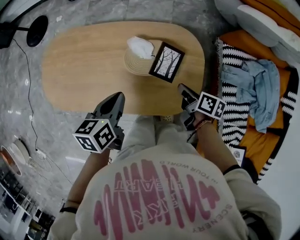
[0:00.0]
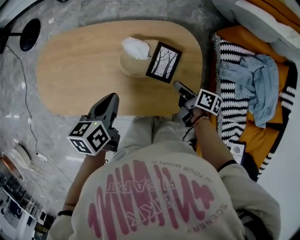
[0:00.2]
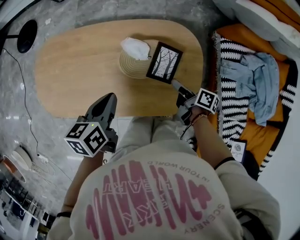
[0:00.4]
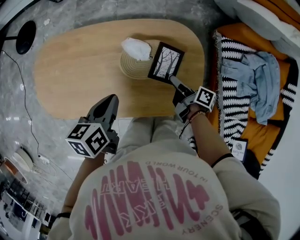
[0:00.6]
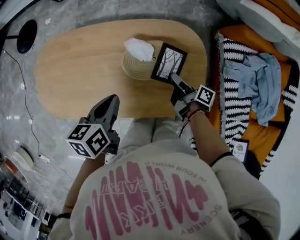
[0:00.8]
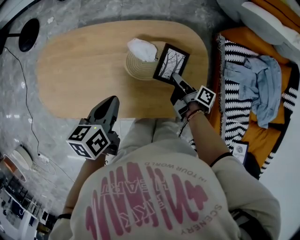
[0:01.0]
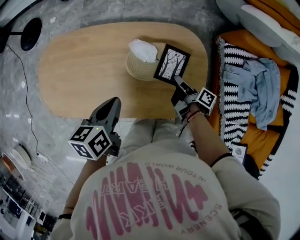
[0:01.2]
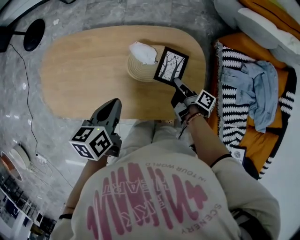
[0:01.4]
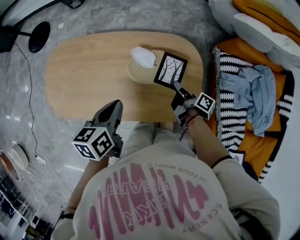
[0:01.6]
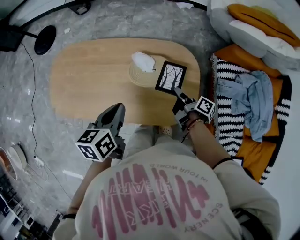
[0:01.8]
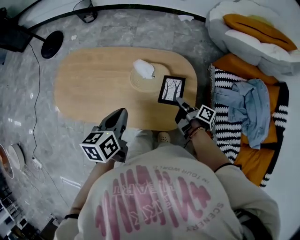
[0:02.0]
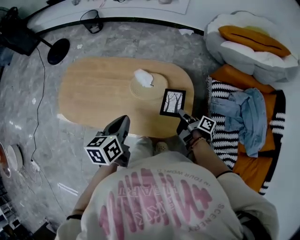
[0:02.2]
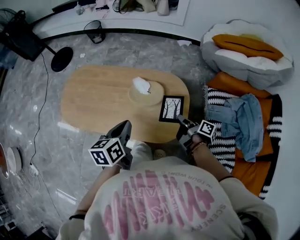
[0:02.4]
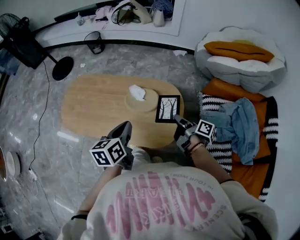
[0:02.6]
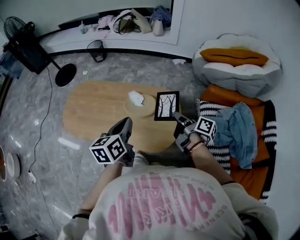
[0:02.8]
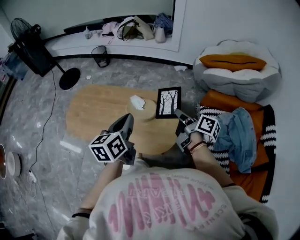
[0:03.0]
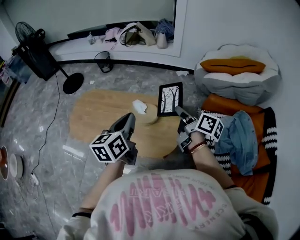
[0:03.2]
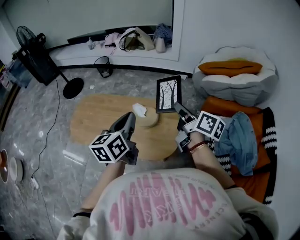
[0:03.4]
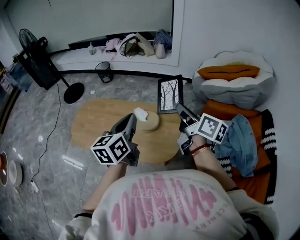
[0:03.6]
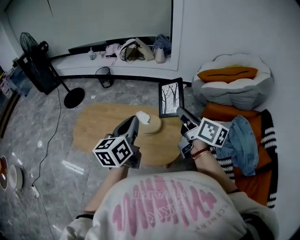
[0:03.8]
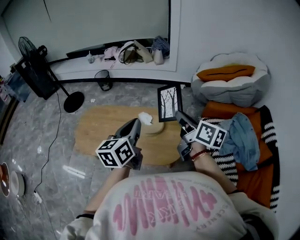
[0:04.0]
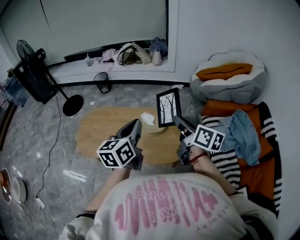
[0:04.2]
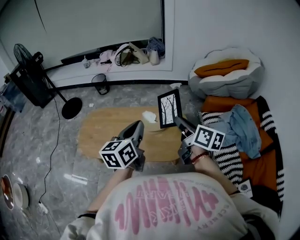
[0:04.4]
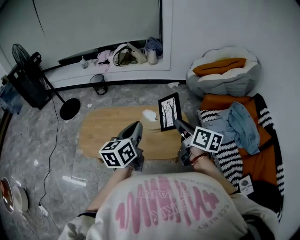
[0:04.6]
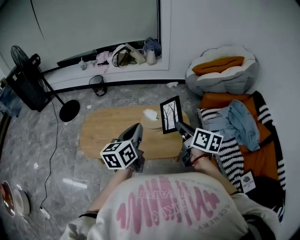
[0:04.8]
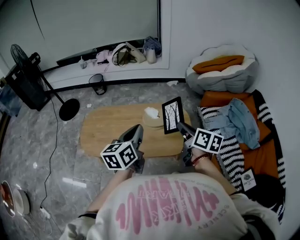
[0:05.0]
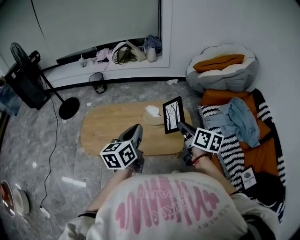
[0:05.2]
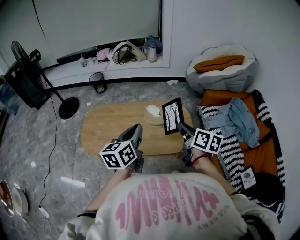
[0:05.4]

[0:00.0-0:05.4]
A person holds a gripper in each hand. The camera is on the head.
0:00.0 to 0:01.4: The right gripper shifts by approximately 5 cm, rotates some 30 degrees, and opens, then closes once more.
0:01.4 to 0:02.8: The left gripper moves upward, to the right and backward, roughly 20 cm, and changes its angle by about 20 degrees. Meanwhile the right gripper moves upward, about 25 cm, and turns by some 20 degrees.
0:02.8 to 0:04.0: The left gripper goes approximately 15 cm upward. The right gripper goes roughly 20 cm upward, and rotates approximately 40 degrees.
0:04.0 to 0:05.4: The left gripper goes about 15 cm to the left and backward. The right gripper travels backward, to the left and downward by approximately 15 cm.

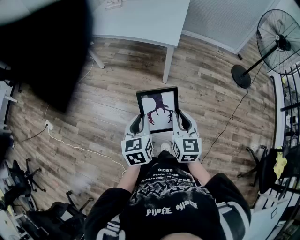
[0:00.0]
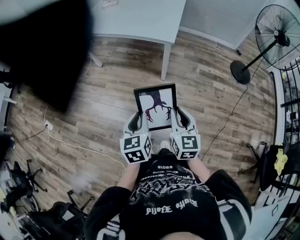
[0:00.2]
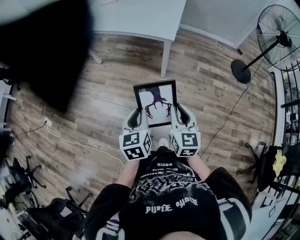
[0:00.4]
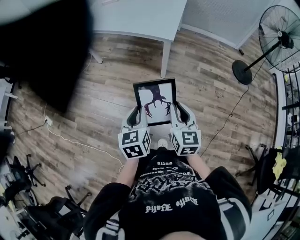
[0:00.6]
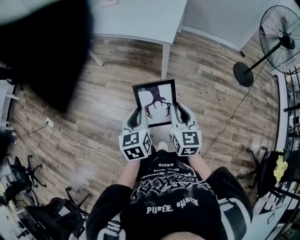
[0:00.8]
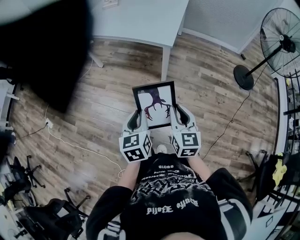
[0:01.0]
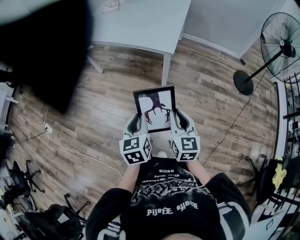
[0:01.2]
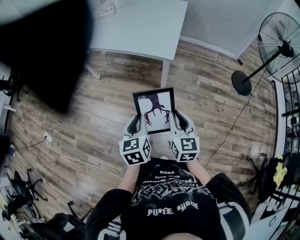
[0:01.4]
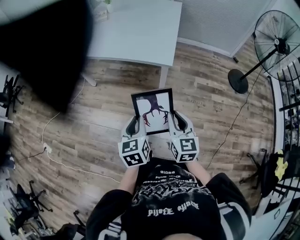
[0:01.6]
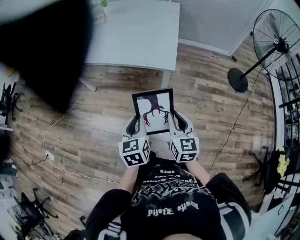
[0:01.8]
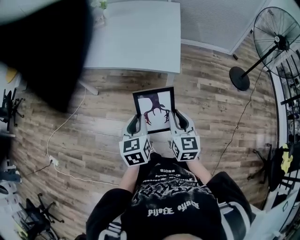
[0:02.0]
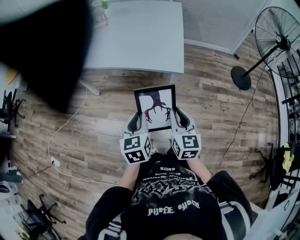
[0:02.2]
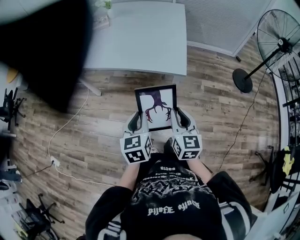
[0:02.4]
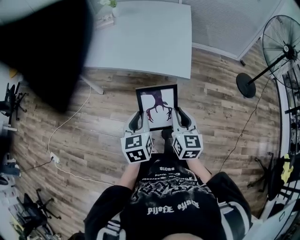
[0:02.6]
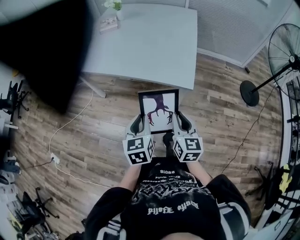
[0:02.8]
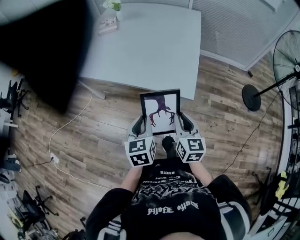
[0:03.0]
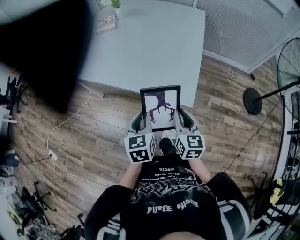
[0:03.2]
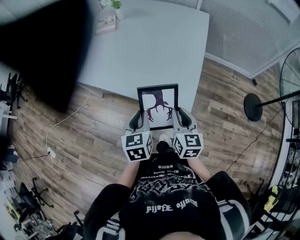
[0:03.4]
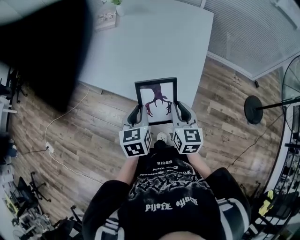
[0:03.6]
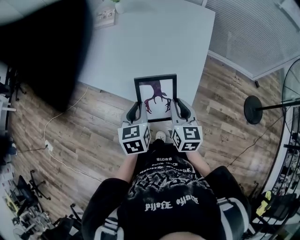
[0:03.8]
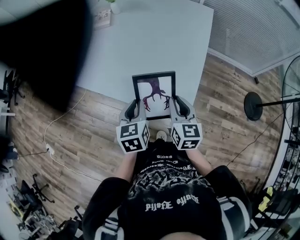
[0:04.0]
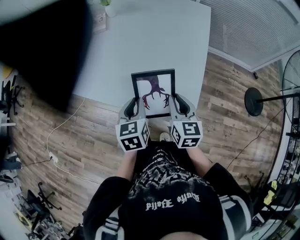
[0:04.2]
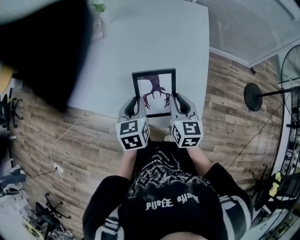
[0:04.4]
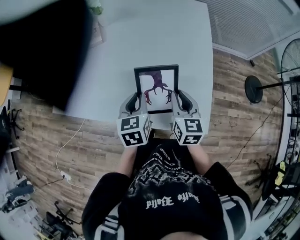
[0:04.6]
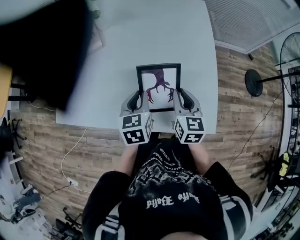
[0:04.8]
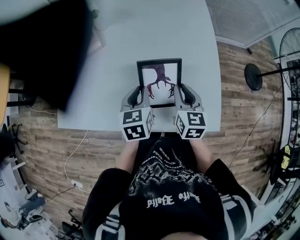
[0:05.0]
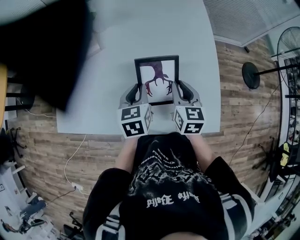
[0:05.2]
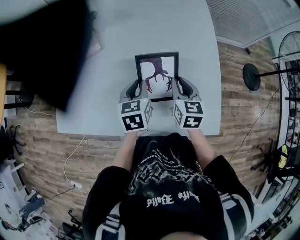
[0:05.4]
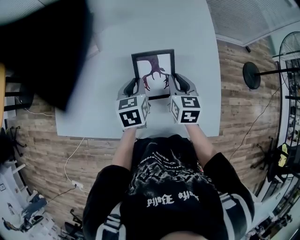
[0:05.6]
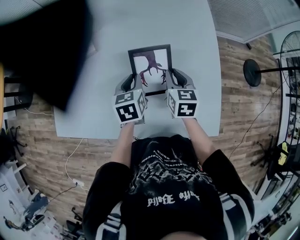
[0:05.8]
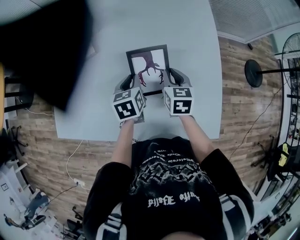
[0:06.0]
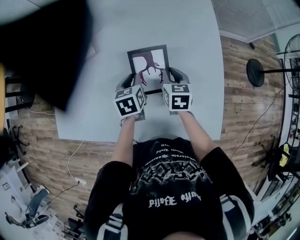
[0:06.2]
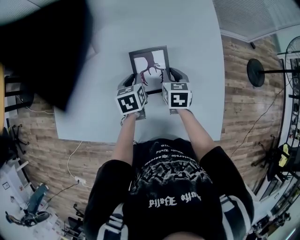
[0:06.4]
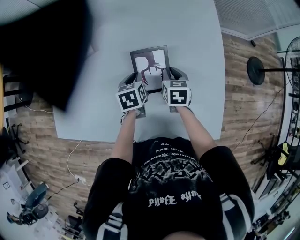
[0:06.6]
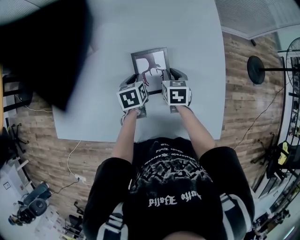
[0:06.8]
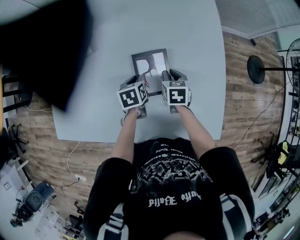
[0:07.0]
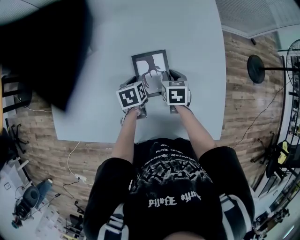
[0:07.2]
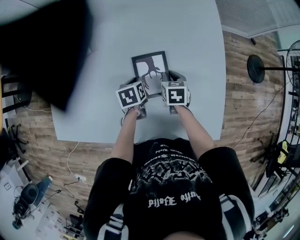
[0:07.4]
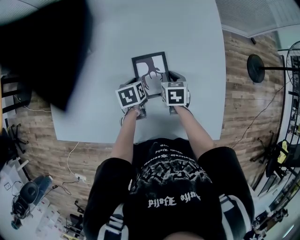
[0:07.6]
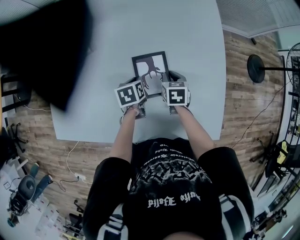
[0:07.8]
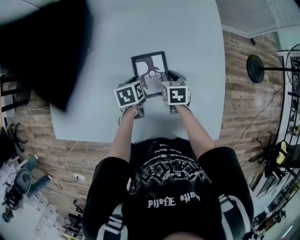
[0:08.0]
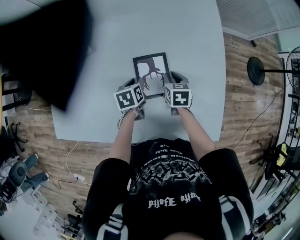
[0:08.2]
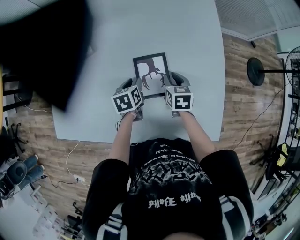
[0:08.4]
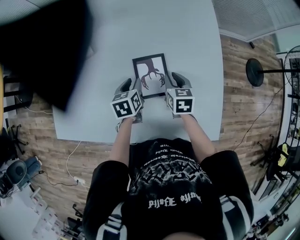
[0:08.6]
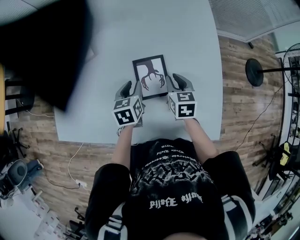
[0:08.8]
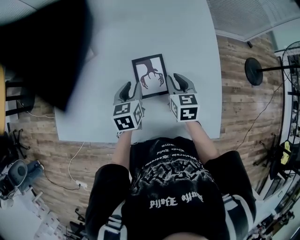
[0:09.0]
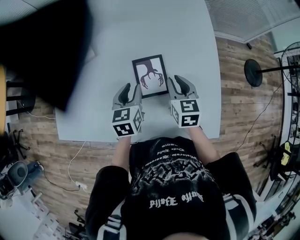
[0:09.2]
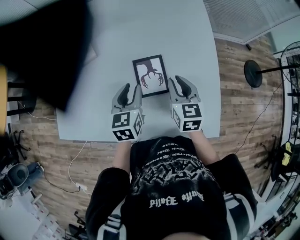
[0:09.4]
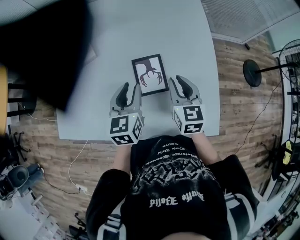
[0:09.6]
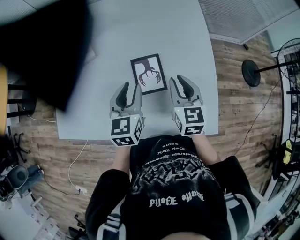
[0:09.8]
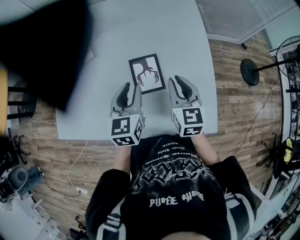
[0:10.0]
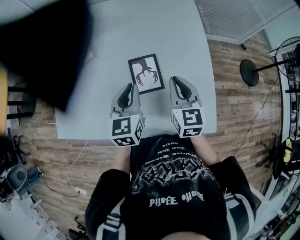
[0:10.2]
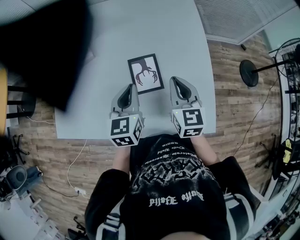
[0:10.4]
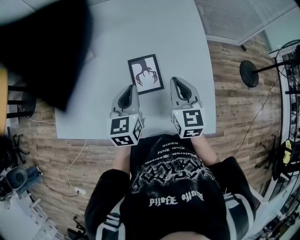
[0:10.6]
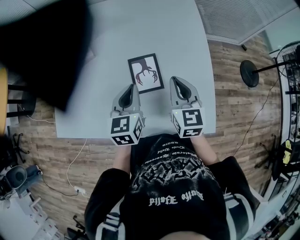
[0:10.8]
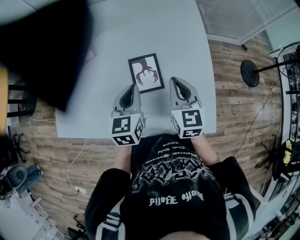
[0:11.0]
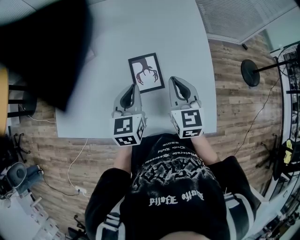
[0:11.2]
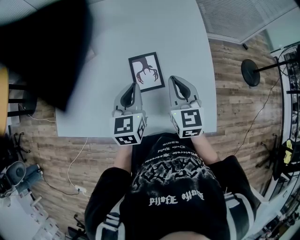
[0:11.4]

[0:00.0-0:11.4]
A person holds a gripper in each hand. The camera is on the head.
0:00.0 to 0:01.4: Both grippers move forward, roughly 15 cm.
0:01.4 to 0:02.8: Both grippers move forward and to the left, some 25 cm.
0:02.8 to 0:04.2: Both grippers move forward, roughly 30 cm.
0:04.2 to 0:05.6: Both grippers move forward and to the left, roughly 25 cm.
0:05.6 to 0:07.2: Both grippers travel together downward, some 15 cm. The right gripper swivels about 20 degrees.
0:07.2 to 0:08.6: The grippers move only a little.
0:08.6 to 0:10.0: Both grippers travel together upward and backward, roughly 20 cm. The right gripper changes its angle by approximately 20 degrees; the left gripper turns by roughly 30 degrees.
0:10.0 to 0:11.4: The left gripper closes.

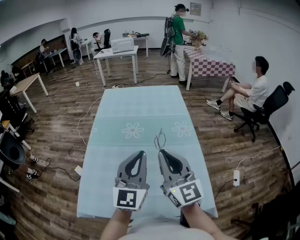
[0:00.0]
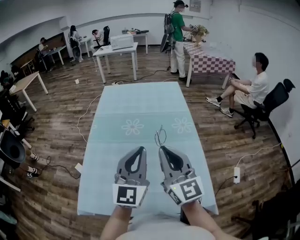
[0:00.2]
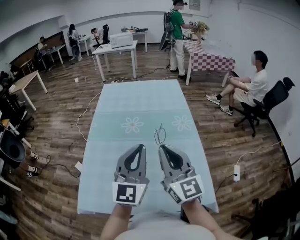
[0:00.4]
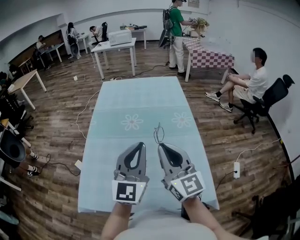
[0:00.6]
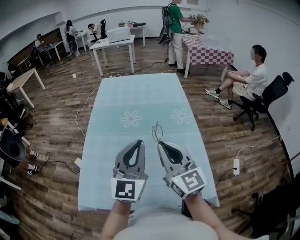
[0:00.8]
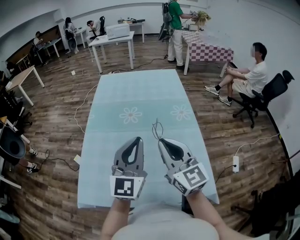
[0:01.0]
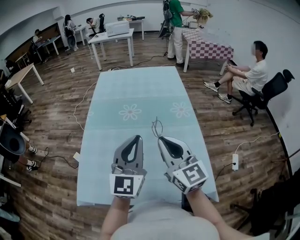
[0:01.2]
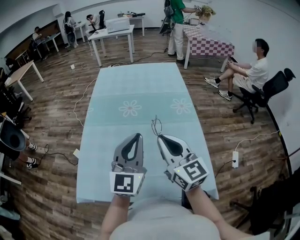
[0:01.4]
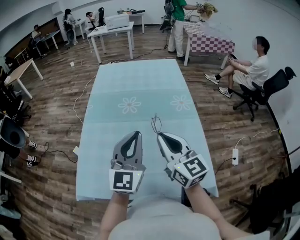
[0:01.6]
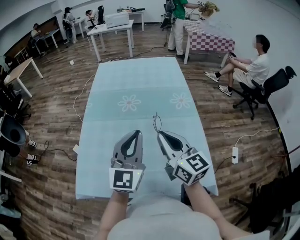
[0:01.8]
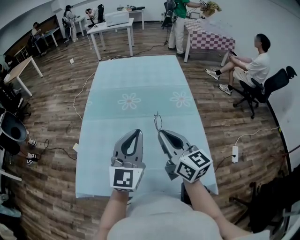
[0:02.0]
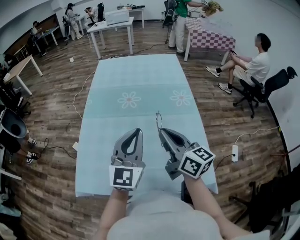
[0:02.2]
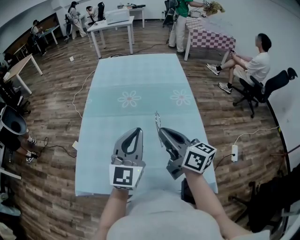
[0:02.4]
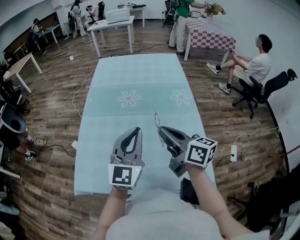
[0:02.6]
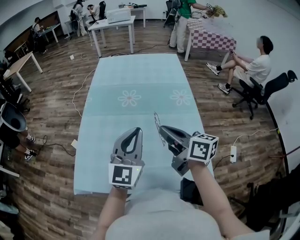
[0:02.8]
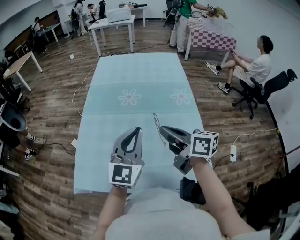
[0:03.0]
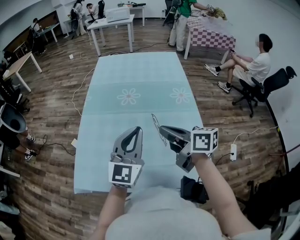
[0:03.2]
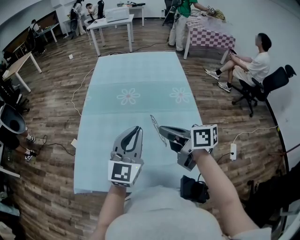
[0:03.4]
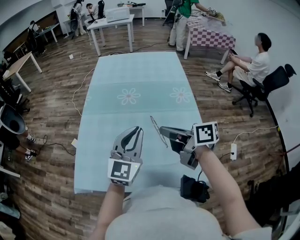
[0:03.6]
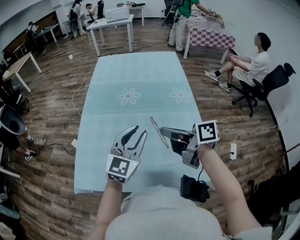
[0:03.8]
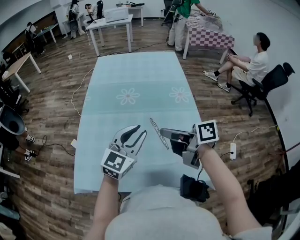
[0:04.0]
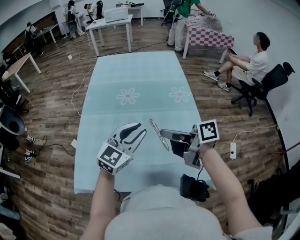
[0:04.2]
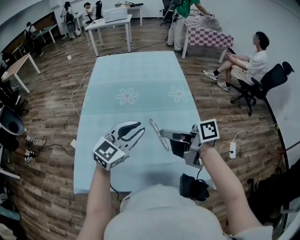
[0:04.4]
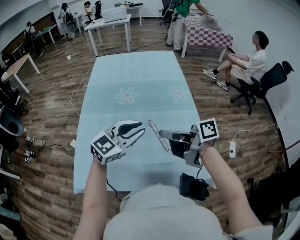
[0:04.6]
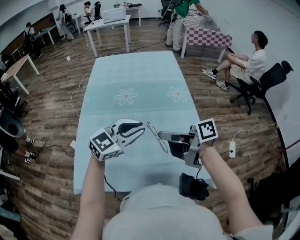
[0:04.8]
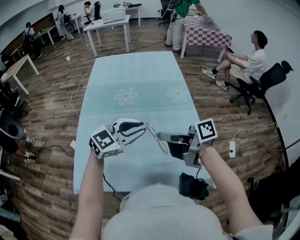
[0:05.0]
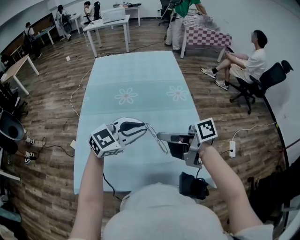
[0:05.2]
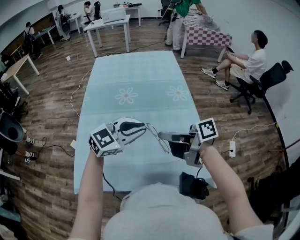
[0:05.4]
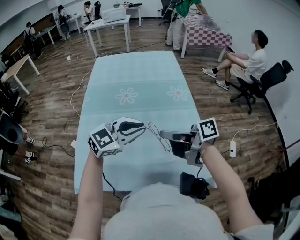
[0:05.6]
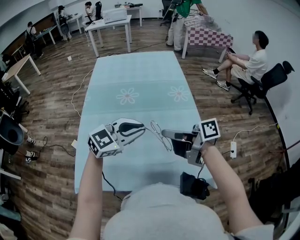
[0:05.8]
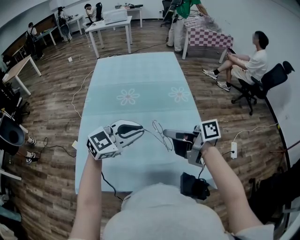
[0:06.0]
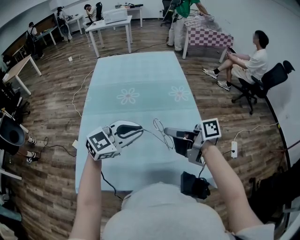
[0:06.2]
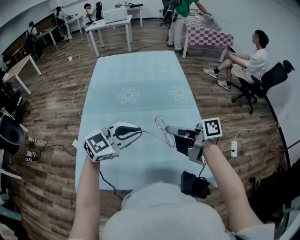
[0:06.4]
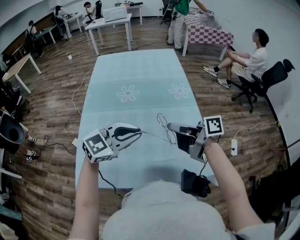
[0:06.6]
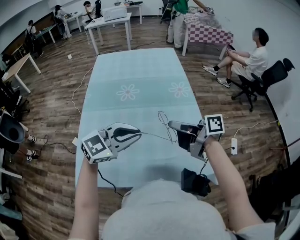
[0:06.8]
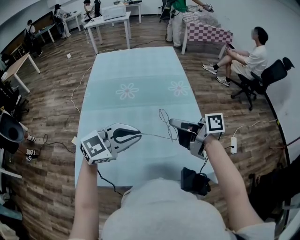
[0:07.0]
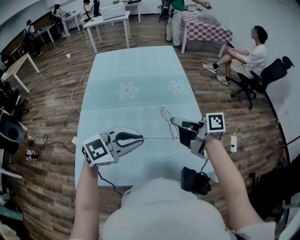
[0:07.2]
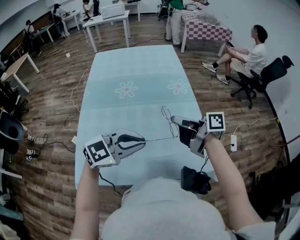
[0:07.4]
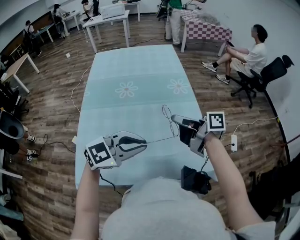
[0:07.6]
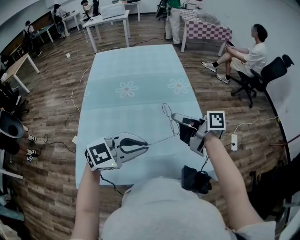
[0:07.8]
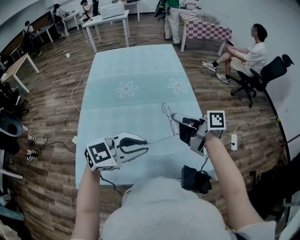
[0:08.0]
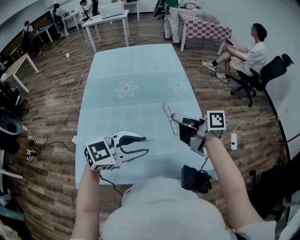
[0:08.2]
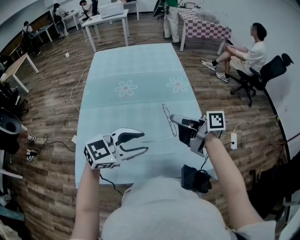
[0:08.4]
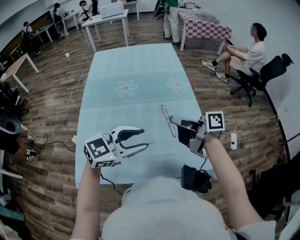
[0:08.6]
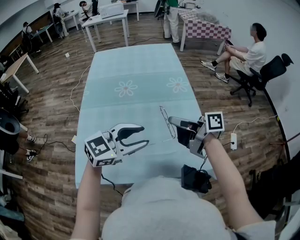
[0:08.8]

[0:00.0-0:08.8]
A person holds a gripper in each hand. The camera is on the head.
0:00.0 to 0:01.4: The right gripper is displaced downward by approximately 5 cm.
0:01.4 to 0:03.0: The right gripper swivels some 40 degrees.
0:03.0 to 0:04.4: The right gripper swivels roughly 30 degrees; the left gripper turns by approximately 30 degrees.
0:04.4 to 0:05.8: The grippers make only small movements.
0:05.8 to 0:07.4: The left gripper changes place by about 10 cm. The right gripper changes place by approximately 5 cm.
0:07.4 to 0:08.8: The left gripper opens up.
